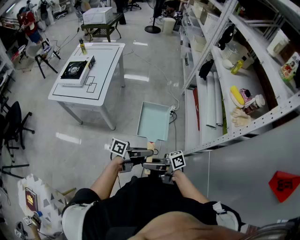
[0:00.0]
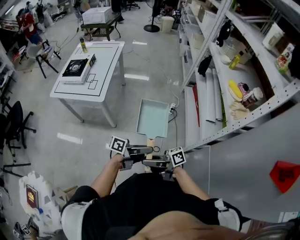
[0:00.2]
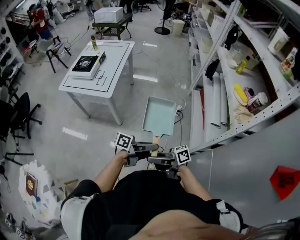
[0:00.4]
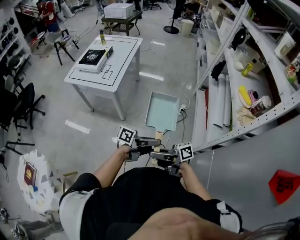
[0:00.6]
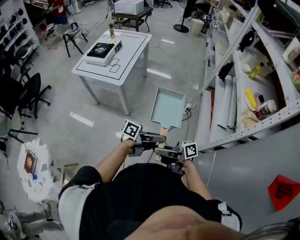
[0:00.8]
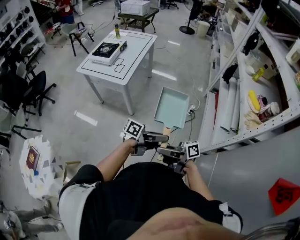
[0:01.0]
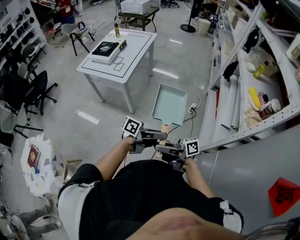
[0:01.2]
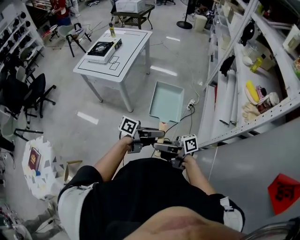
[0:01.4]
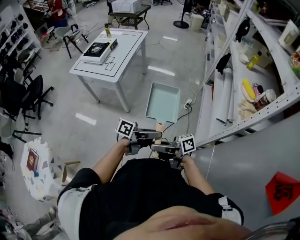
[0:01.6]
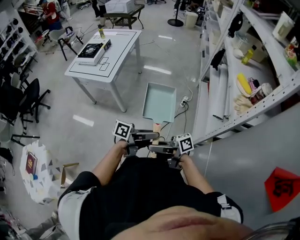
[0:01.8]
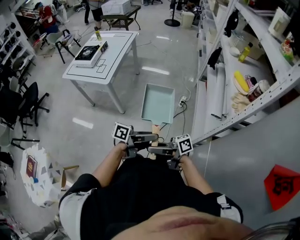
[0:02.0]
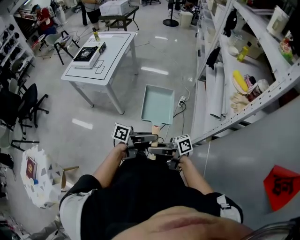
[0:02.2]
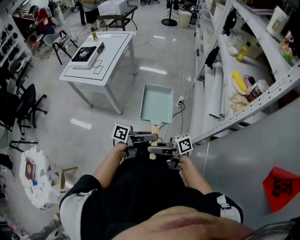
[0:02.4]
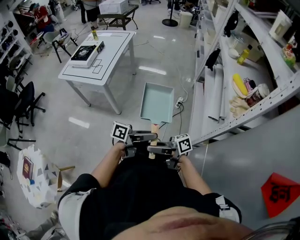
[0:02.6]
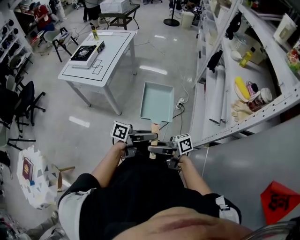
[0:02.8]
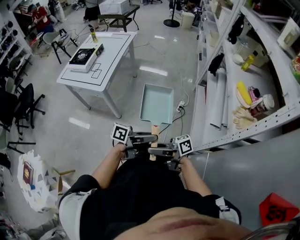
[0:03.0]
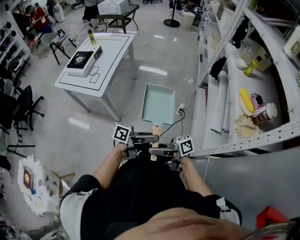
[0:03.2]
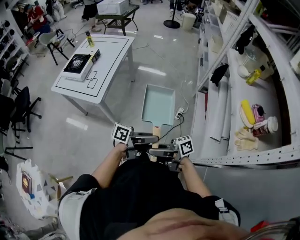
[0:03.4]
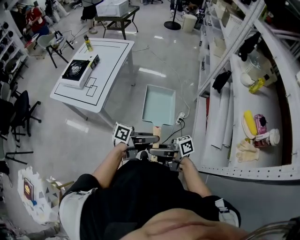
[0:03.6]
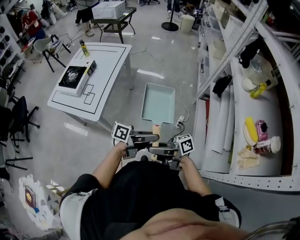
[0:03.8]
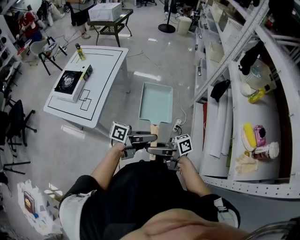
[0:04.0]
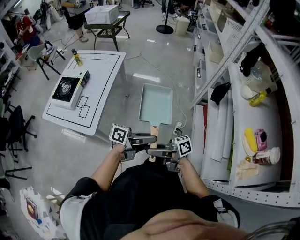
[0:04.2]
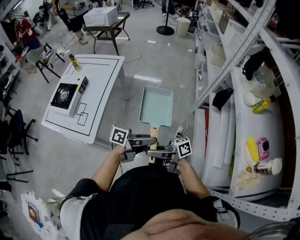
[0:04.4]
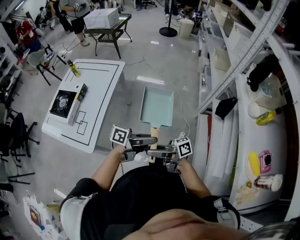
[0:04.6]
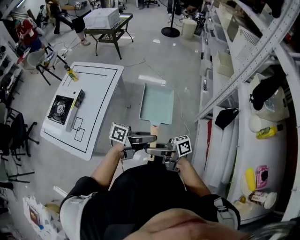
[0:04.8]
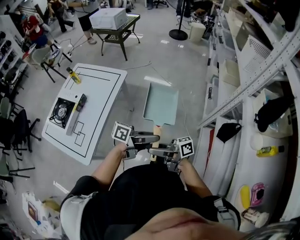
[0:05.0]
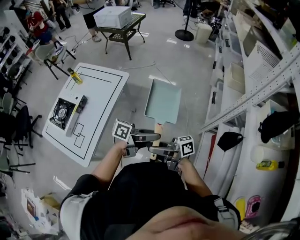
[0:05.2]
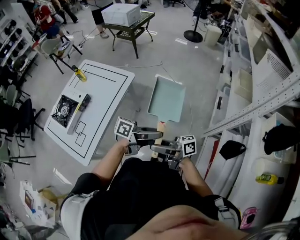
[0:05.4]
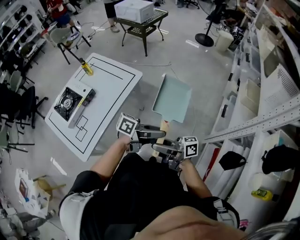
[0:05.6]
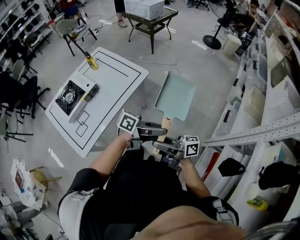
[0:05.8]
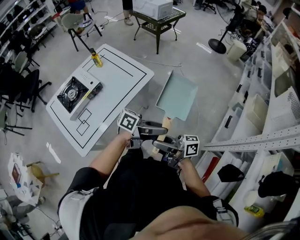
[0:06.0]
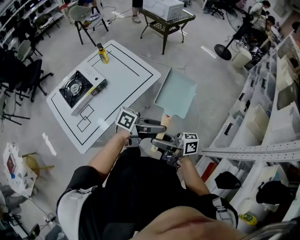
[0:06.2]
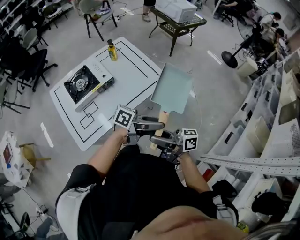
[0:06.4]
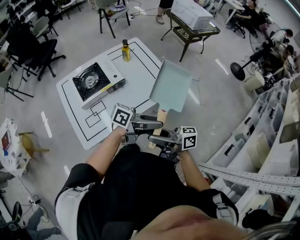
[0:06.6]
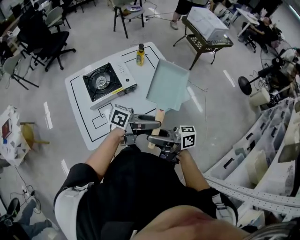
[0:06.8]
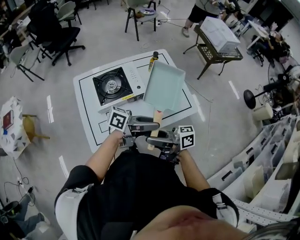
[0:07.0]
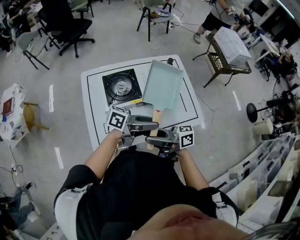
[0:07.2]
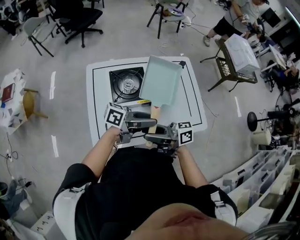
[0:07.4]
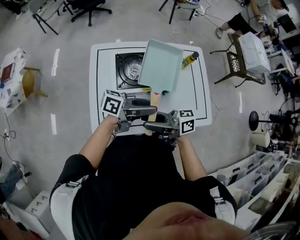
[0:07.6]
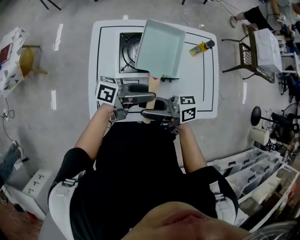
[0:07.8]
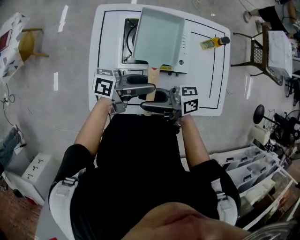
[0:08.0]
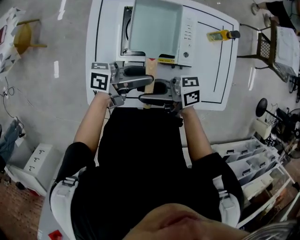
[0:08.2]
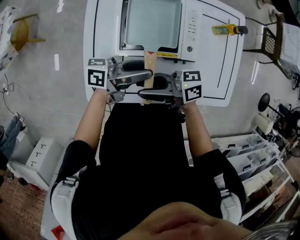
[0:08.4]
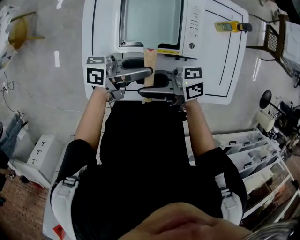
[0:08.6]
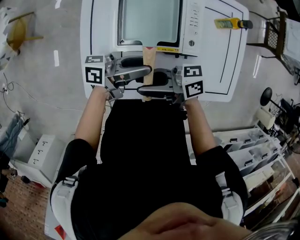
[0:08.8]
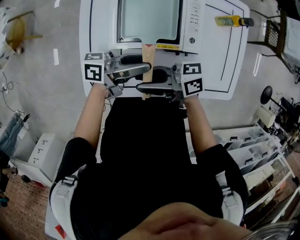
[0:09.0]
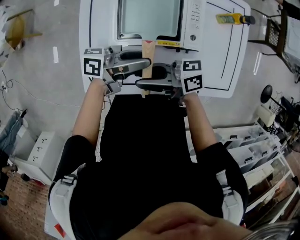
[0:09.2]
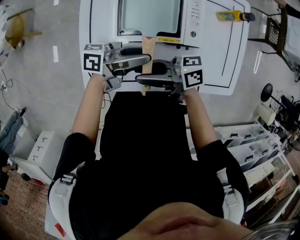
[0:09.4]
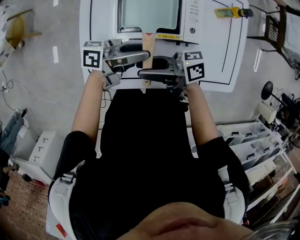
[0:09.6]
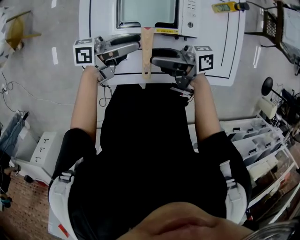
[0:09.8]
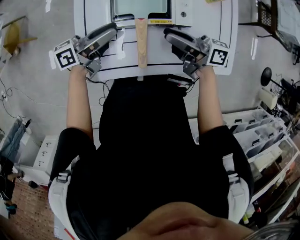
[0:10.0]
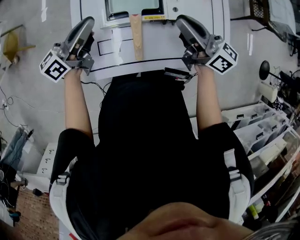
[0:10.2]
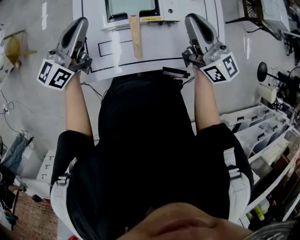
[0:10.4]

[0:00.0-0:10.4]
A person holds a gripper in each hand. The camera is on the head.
0:00.0 to 0:01.4: The left gripper changes place by about 5 cm; the right gripper moves approximately 10 cm.
0:01.4 to 0:03.0: The right gripper changes place by some 10 cm; the left gripper changes place by about 10 cm.
0:03.0 to 0:04.4: The left gripper ends up about 35 cm from where it was, while the right gripper moves some 40 cm.
0:04.4 to 0:06.0: The left gripper moves some 40 cm; the right gripper ends up roughly 40 cm from where it was.
0:06.0 to 0:07.4: The left gripper moves some 50 cm, and rotates approximately 50 degrees. Meanwhile the right gripper moves about 40 cm, and changes its angle by some 50 degrees.
0:07.4 to 0:09.0: Both grippers move downward, roughly 15 cm. The right gripper swivels roughly 20 degrees. The left gripper rotates approximately 20 degrees.
0:09.0 to 0:10.4: The left gripper changes place by approximately 20 cm, rotates around the line of its fingers by some 50 degrees, clockwise from behind, and closes. Meanwhile the right gripper is displaced upward by roughly 15 cm, turns by some 80 degrees, and closes up.

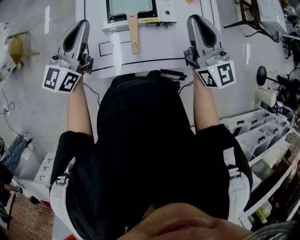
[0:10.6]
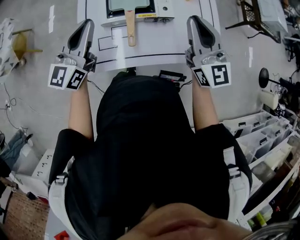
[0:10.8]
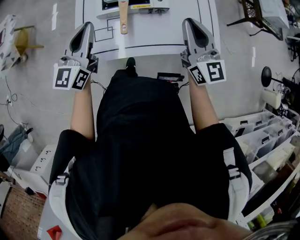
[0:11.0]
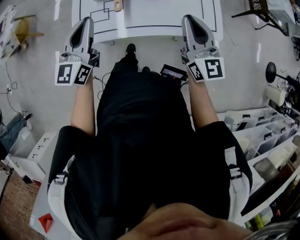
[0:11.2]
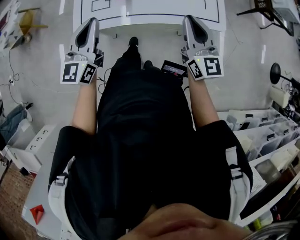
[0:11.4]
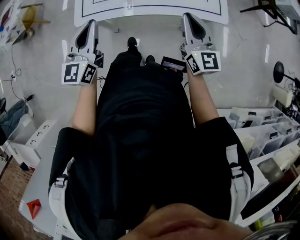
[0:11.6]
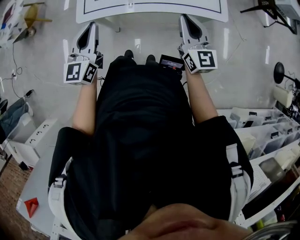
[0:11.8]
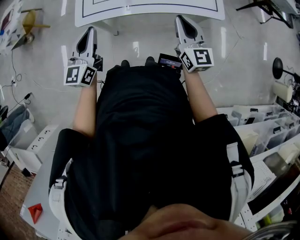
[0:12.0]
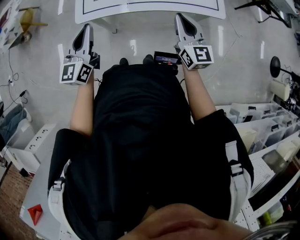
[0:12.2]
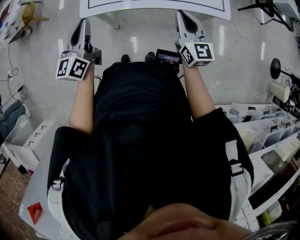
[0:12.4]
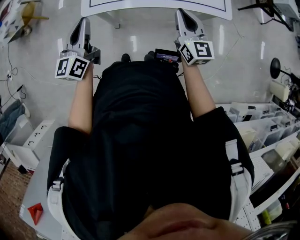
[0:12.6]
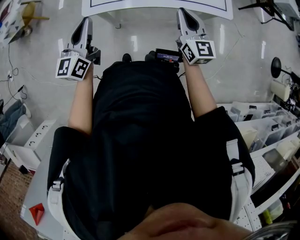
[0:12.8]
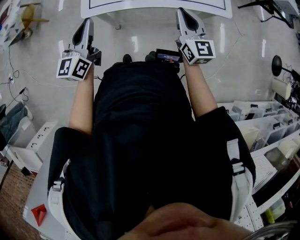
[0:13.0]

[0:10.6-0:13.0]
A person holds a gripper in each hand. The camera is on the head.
0:10.6 to 0:11.8: The left gripper moves backward, about 30 cm, and changes its angle by some 20 degrees, while the right gripper is displaced backward and downward by approximately 30 cm.
0:11.8 to 0:13.0: Both grippers move to the left, approximately 5 cm.

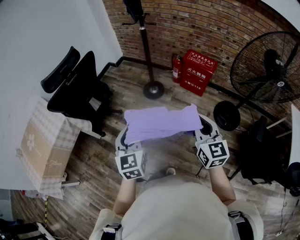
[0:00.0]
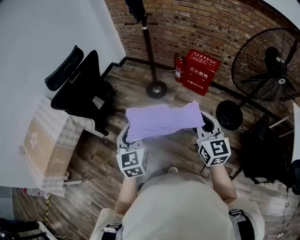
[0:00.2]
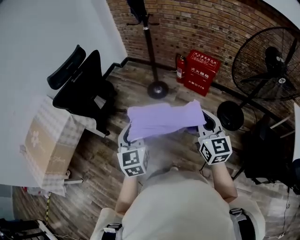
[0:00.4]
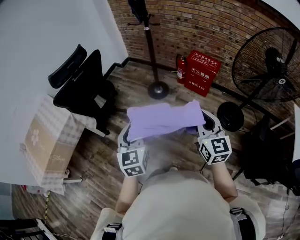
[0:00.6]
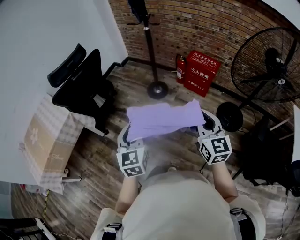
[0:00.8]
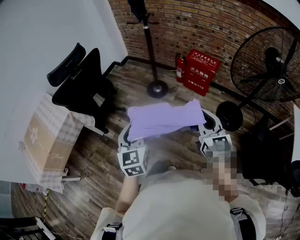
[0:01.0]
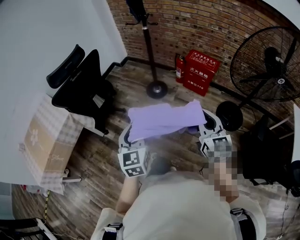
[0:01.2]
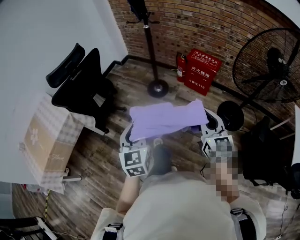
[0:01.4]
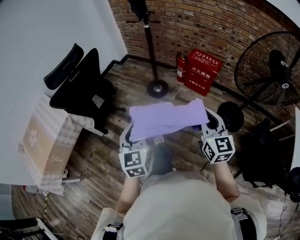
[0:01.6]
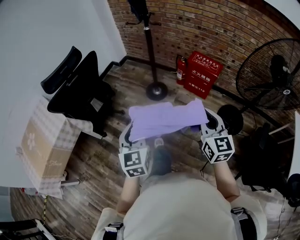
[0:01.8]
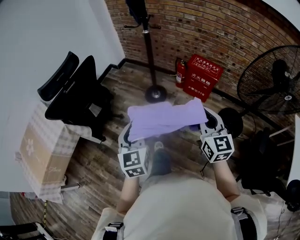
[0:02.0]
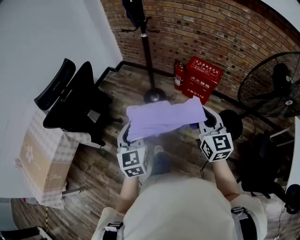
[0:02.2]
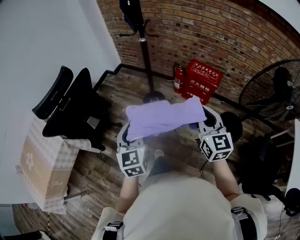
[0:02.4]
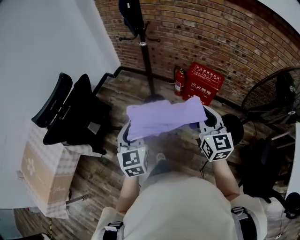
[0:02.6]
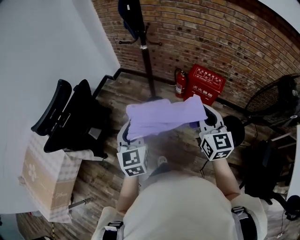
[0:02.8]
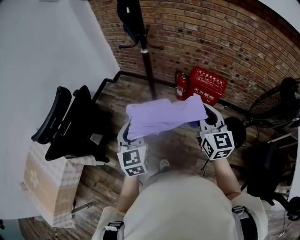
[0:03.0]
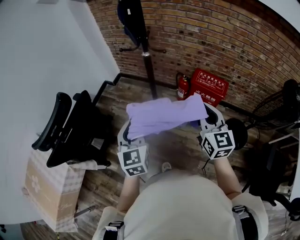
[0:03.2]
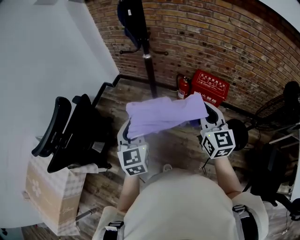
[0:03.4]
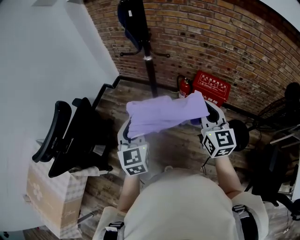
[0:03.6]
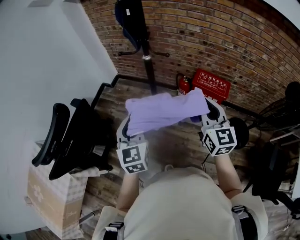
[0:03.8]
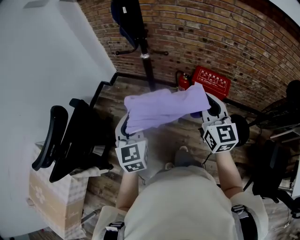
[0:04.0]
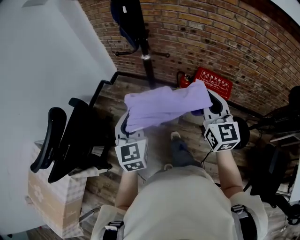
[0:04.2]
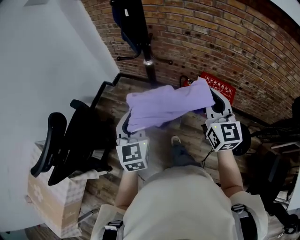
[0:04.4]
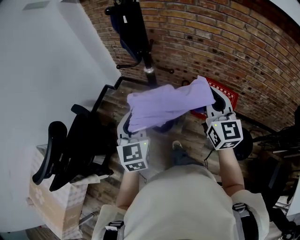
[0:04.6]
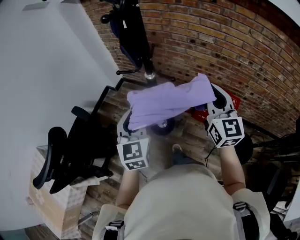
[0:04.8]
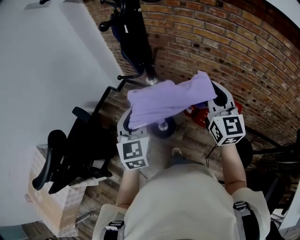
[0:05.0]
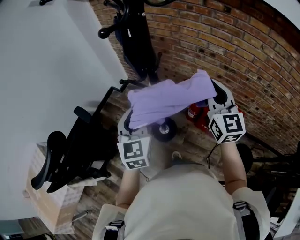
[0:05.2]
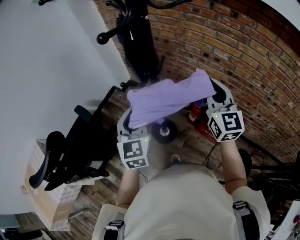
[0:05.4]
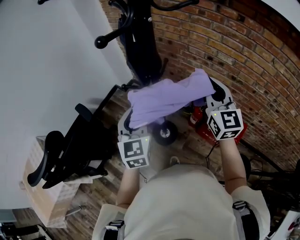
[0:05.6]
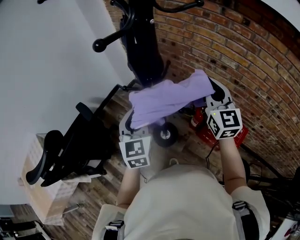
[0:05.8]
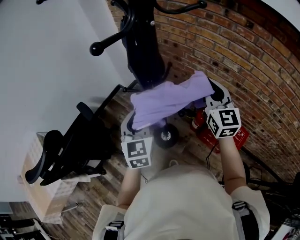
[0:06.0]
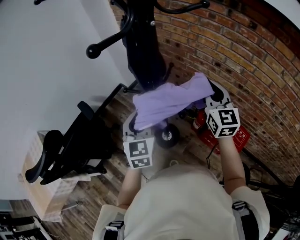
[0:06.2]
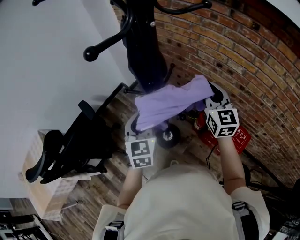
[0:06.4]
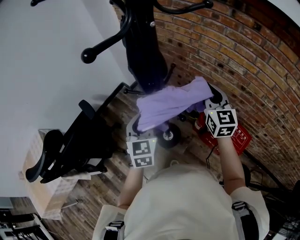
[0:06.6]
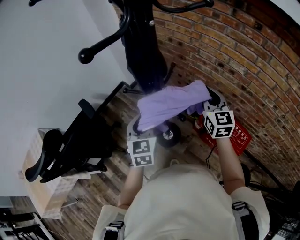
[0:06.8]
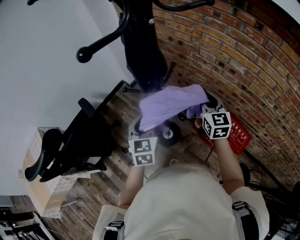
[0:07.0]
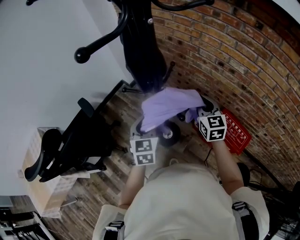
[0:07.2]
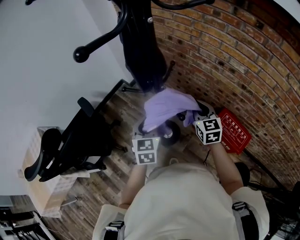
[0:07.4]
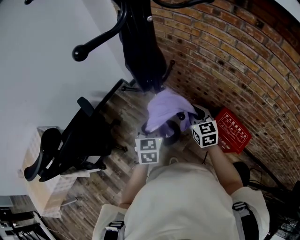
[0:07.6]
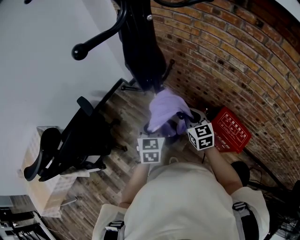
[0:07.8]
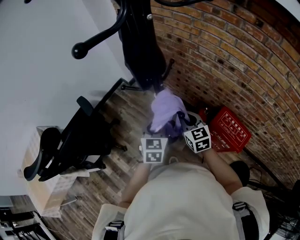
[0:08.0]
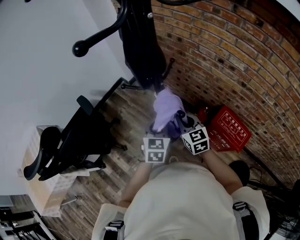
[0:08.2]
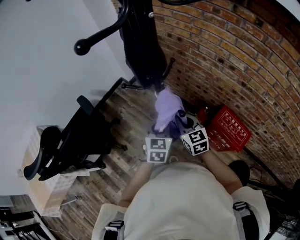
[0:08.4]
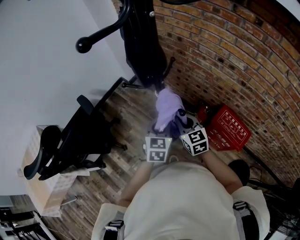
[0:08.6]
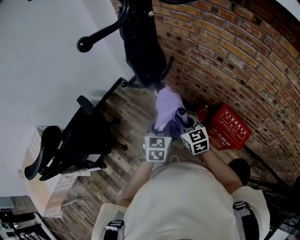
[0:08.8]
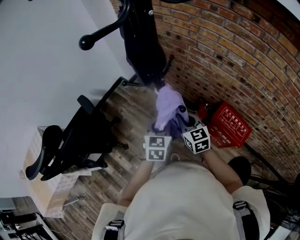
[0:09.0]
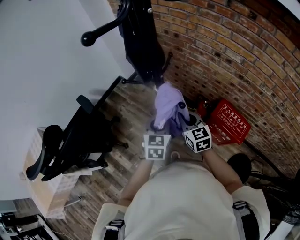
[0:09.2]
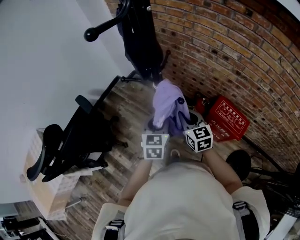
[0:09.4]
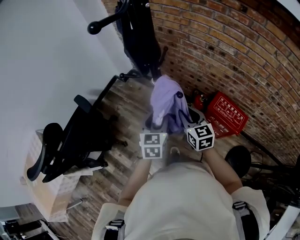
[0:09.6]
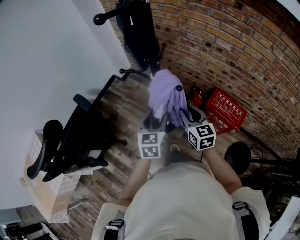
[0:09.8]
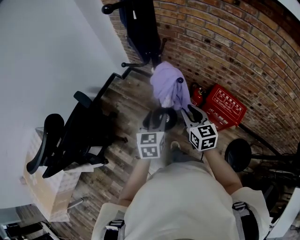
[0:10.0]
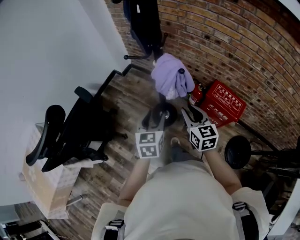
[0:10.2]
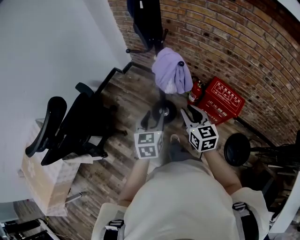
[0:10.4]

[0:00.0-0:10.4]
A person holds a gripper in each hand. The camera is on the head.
0:00.0 to 0:01.4: The grippers make only small movements.
0:01.4 to 0:03.0: Both grippers travel together forward, roughly 30 cm.
0:03.0 to 0:04.4: The two grippers go roughly 15 cm forward.
0:04.4 to 0:06.0: The right gripper shifts roughly 30 cm forward, while the left gripper moves forward, some 20 cm.
0:06.0 to 0:07.4: The left gripper heads downward, covering approximately 10 cm. The right gripper goes some 15 cm downward, and turns by some 20 degrees.
0:07.4 to 0:09.0: The left gripper goes approximately 5 cm to the right, while the right gripper goes about 10 cm to the left and backward.
0:09.0 to 0:10.4: The right gripper moves backward, about 15 cm; the left gripper moves backward and to the left, roughly 15 cm, and opens up.
